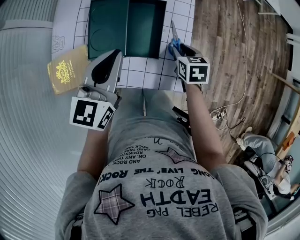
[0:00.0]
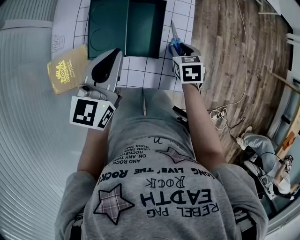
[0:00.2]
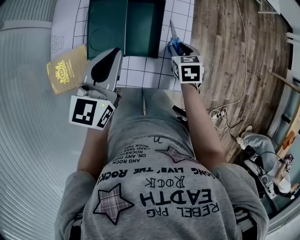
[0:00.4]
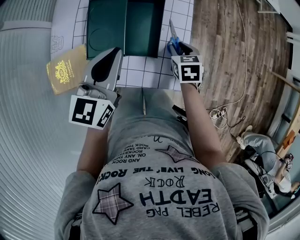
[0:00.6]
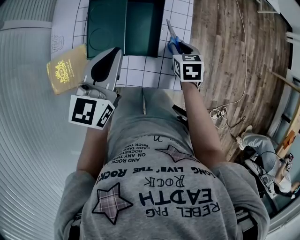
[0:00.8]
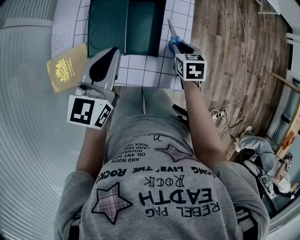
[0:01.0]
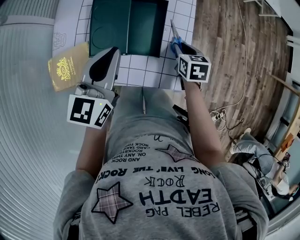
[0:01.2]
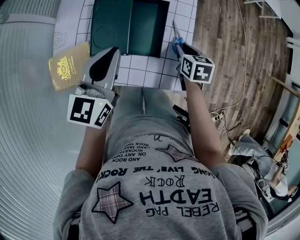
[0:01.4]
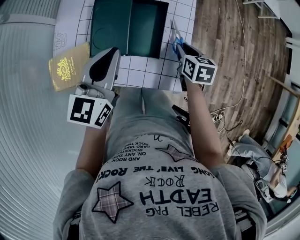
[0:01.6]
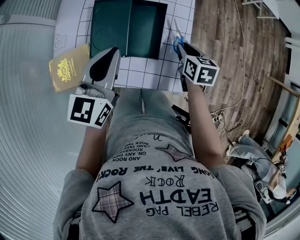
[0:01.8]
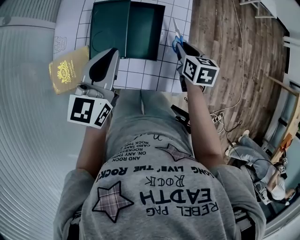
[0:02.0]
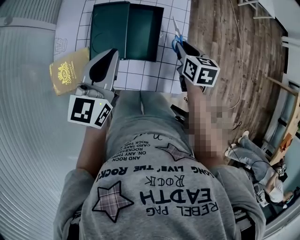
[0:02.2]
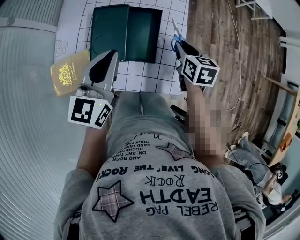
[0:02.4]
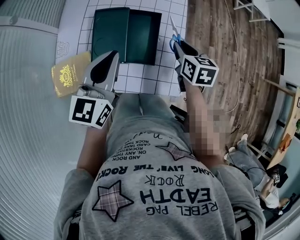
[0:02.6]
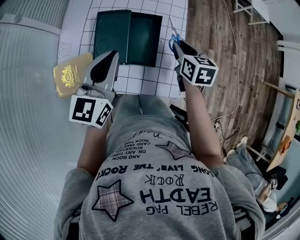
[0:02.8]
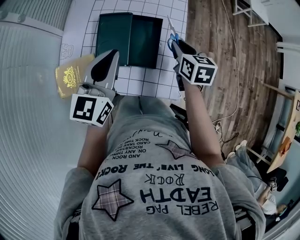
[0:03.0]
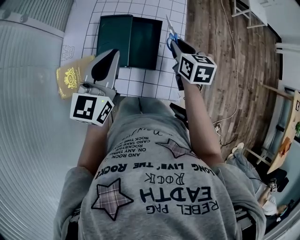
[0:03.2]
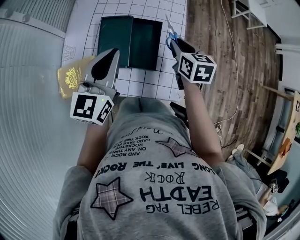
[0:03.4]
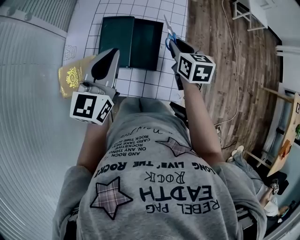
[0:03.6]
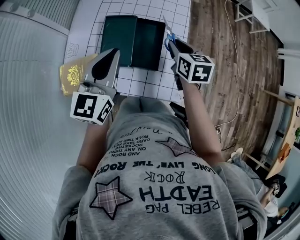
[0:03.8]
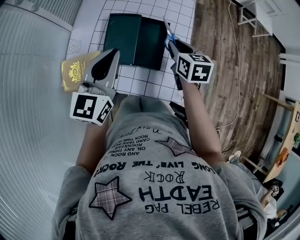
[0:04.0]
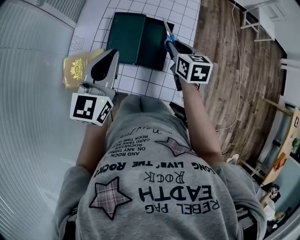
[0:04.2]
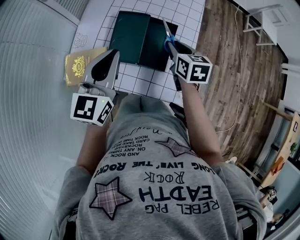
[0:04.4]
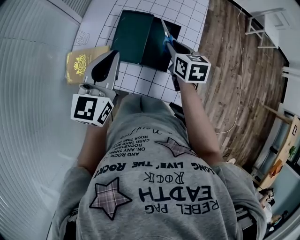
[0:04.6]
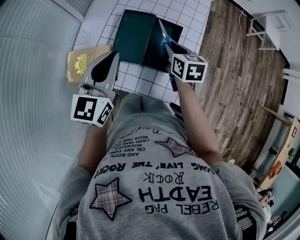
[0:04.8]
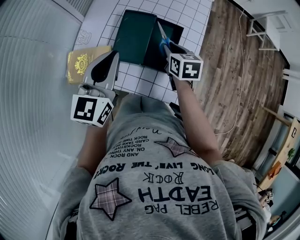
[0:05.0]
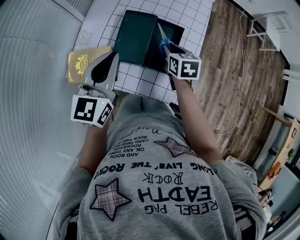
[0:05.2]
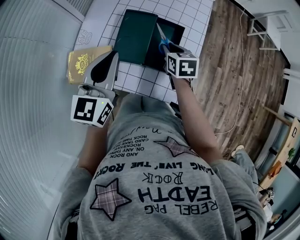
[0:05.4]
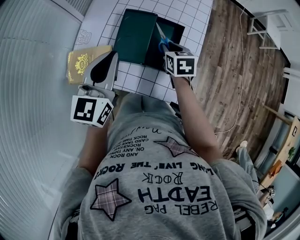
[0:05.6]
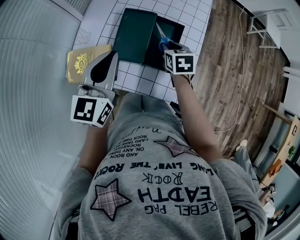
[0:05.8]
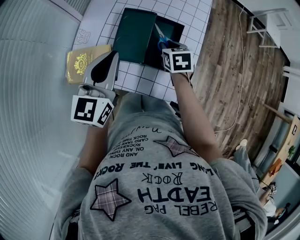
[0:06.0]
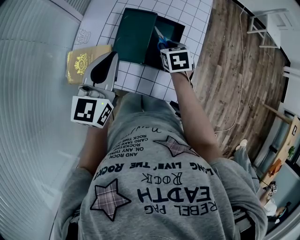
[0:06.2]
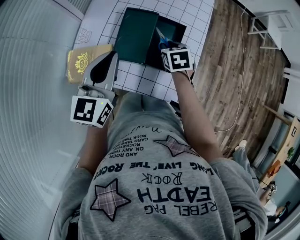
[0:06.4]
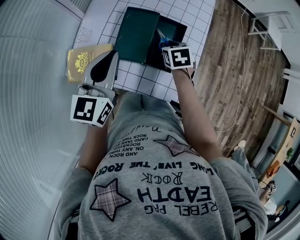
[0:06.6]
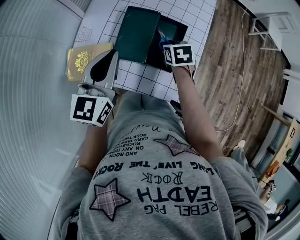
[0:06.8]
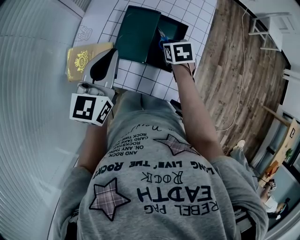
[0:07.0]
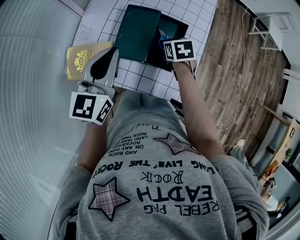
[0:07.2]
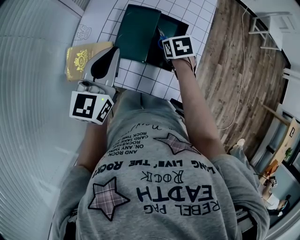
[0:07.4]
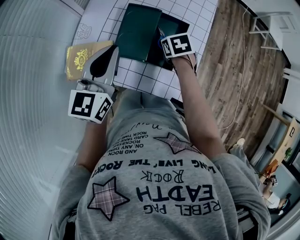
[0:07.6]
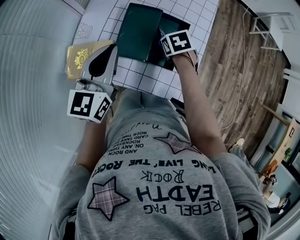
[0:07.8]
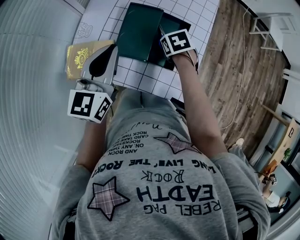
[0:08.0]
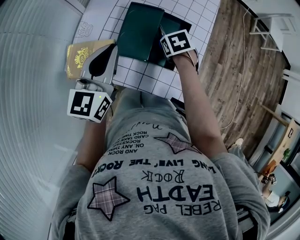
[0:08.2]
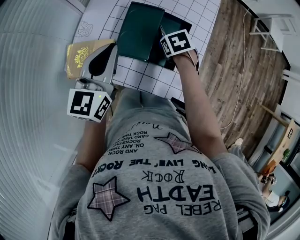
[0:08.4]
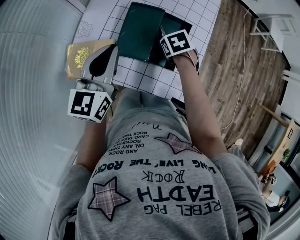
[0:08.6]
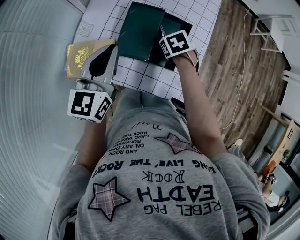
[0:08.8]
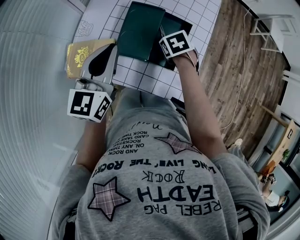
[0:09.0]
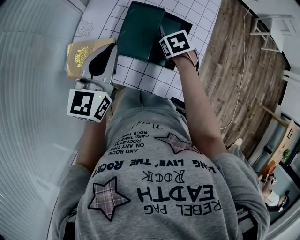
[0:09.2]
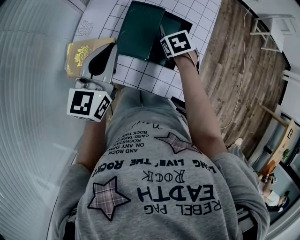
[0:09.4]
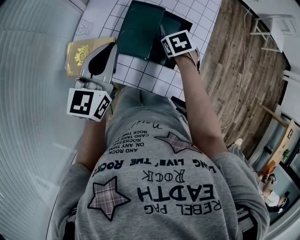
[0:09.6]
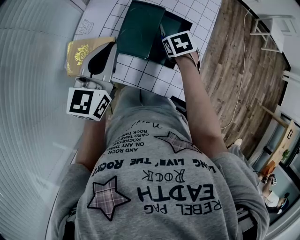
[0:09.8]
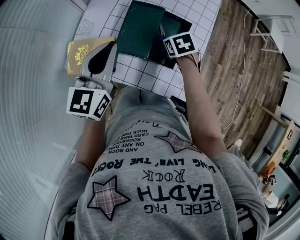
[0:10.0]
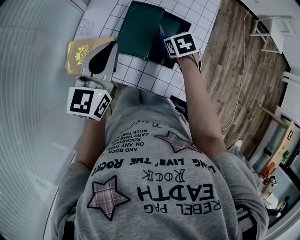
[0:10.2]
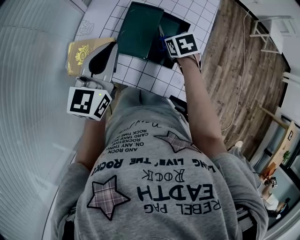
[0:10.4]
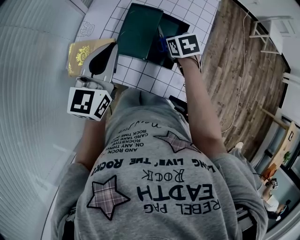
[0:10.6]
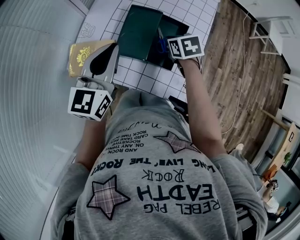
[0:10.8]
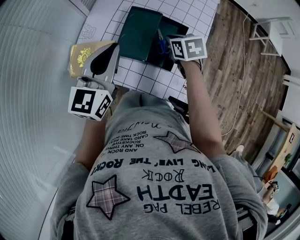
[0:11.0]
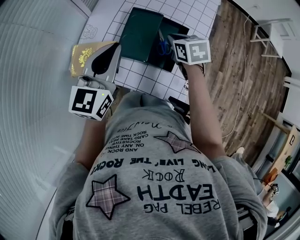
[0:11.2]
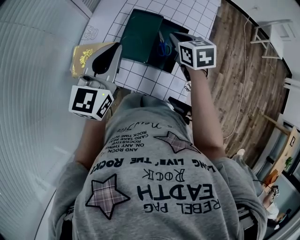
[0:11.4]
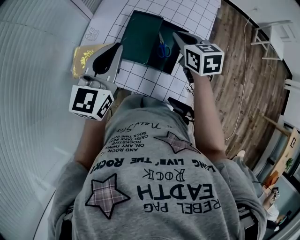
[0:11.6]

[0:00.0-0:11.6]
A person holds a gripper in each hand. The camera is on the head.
0:00.0 to 0:01.4: The grippers move only a little.
0:01.4 to 0:02.8: The right gripper heads upward, covering about 10 cm.
0:02.8 to 0:04.4: The right gripper goes roughly 10 cm to the left. Meanwhile the left gripper ends up some 5 cm from where it was.
0:04.4 to 0:05.8: The right gripper travels downward by some 5 cm.
0:05.8 to 0:07.2: The grippers make only small movements.
0:07.2 to 0:10.2: There are only small adjustments of the grippers.
0:10.2 to 0:11.6: The right gripper moves upward, some 15 cm, and tilts its fingers about 30 degrees upward.

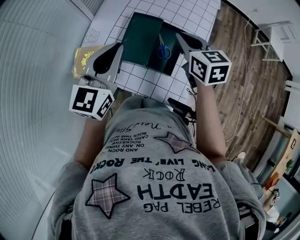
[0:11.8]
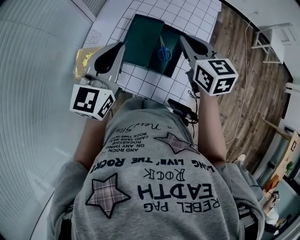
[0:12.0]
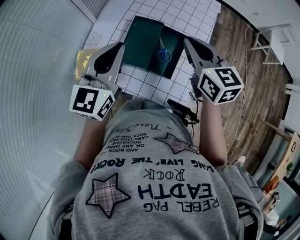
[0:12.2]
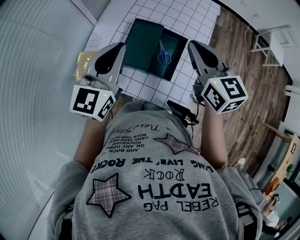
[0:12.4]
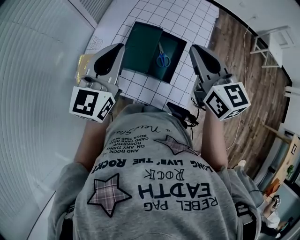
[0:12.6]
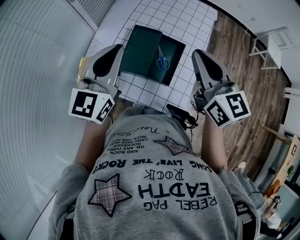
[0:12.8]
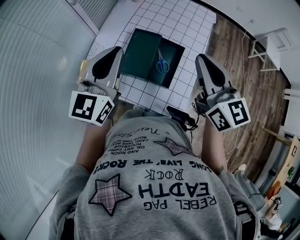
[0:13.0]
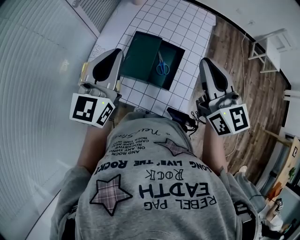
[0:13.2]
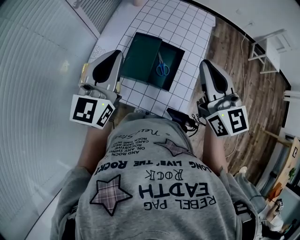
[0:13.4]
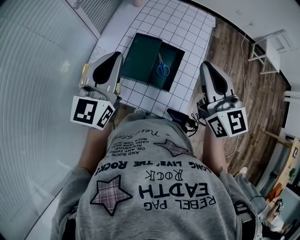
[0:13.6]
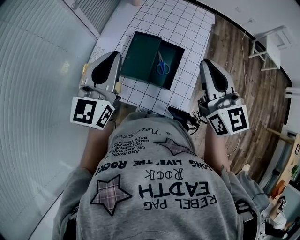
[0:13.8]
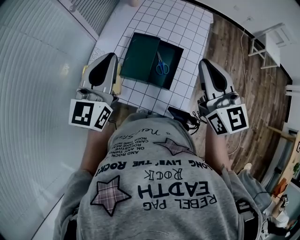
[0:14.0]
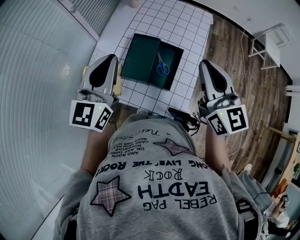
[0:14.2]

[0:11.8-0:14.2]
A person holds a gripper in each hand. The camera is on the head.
0:11.8 to 0:13.0: The right gripper travels upward and backward by about 15 cm, and rotates some 30 degrees. Meanwhile the left gripper travels upward by about 5 cm.
0:13.0 to 0:14.2: The grippers move only a little.

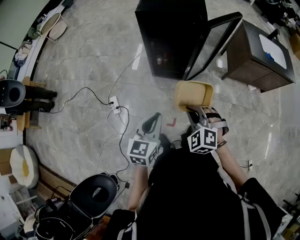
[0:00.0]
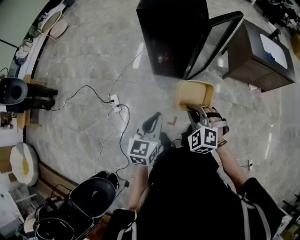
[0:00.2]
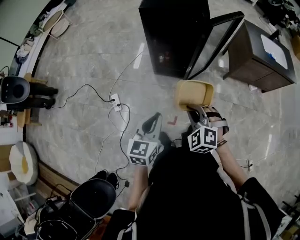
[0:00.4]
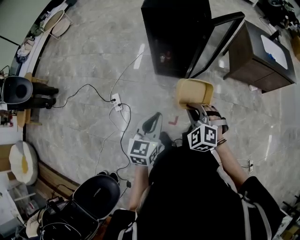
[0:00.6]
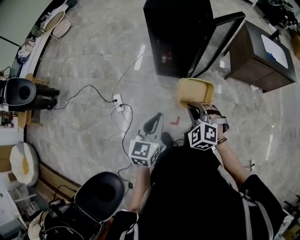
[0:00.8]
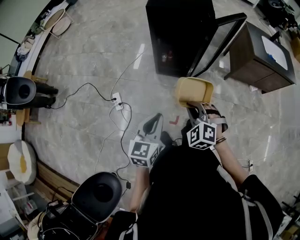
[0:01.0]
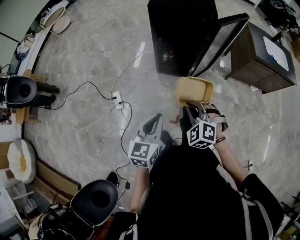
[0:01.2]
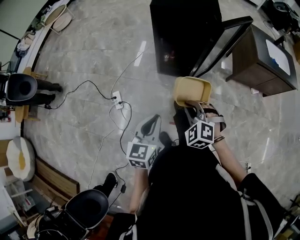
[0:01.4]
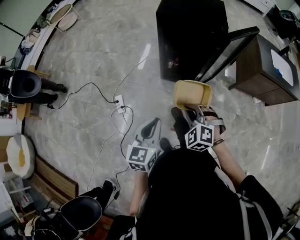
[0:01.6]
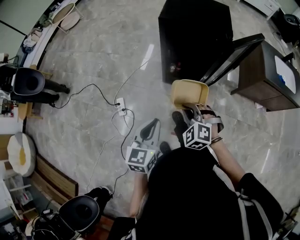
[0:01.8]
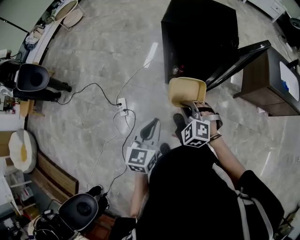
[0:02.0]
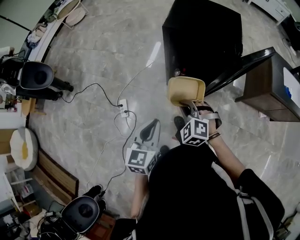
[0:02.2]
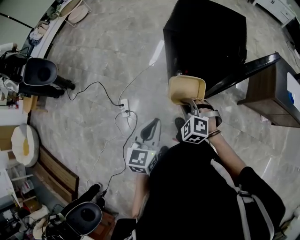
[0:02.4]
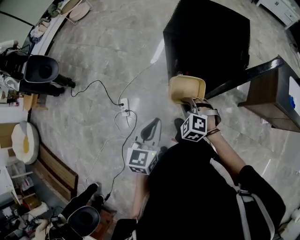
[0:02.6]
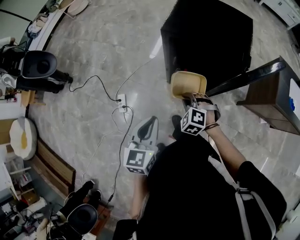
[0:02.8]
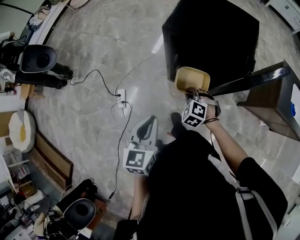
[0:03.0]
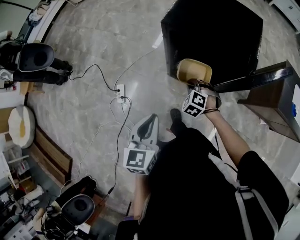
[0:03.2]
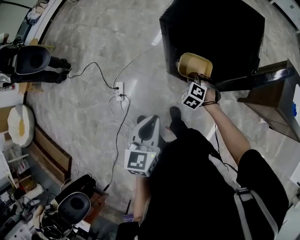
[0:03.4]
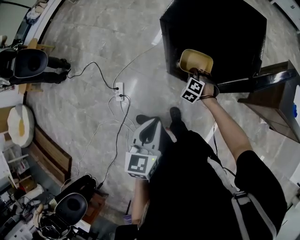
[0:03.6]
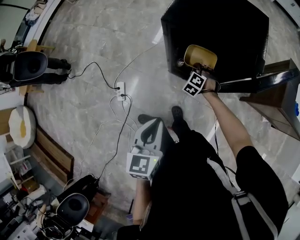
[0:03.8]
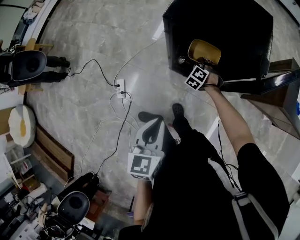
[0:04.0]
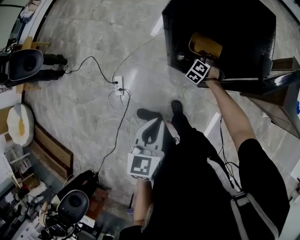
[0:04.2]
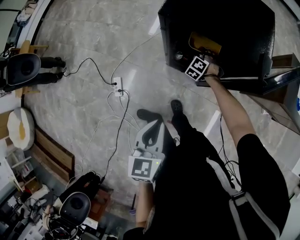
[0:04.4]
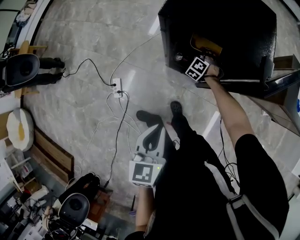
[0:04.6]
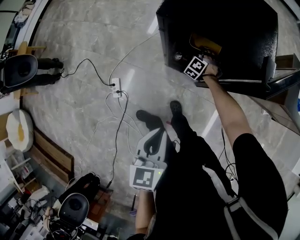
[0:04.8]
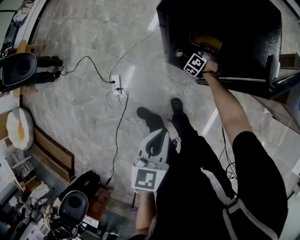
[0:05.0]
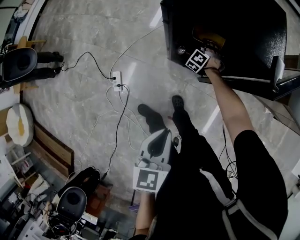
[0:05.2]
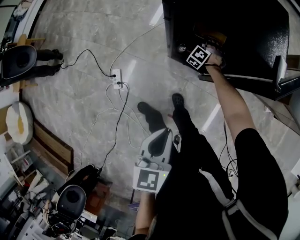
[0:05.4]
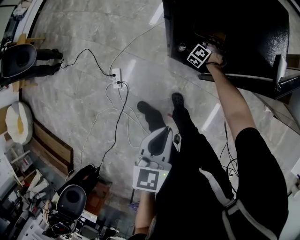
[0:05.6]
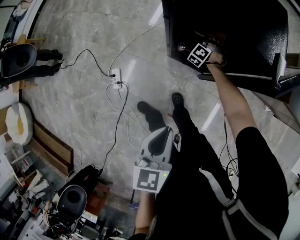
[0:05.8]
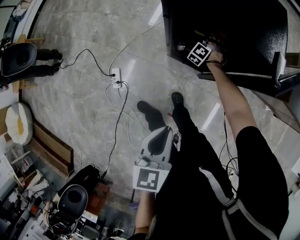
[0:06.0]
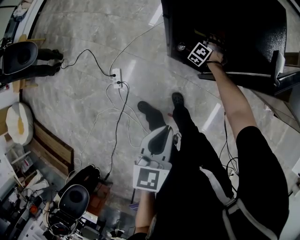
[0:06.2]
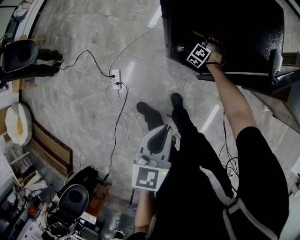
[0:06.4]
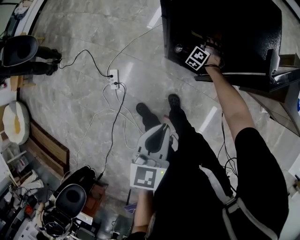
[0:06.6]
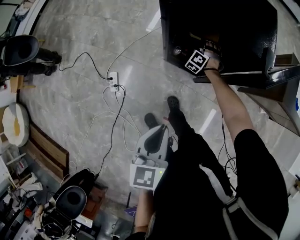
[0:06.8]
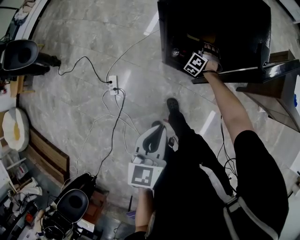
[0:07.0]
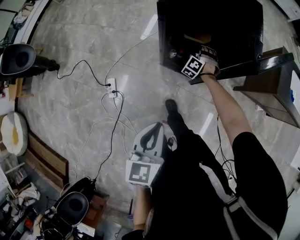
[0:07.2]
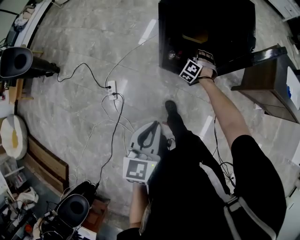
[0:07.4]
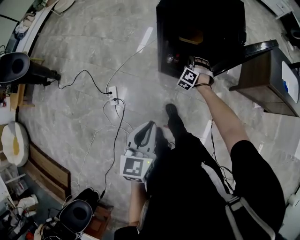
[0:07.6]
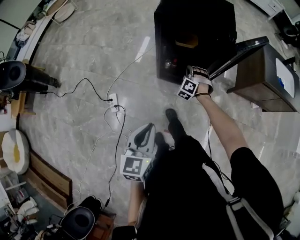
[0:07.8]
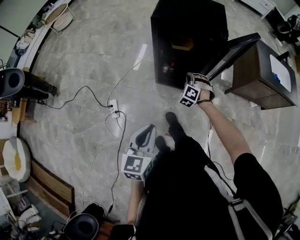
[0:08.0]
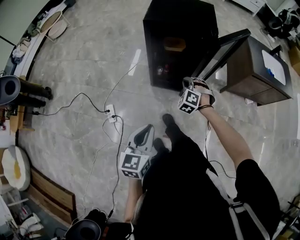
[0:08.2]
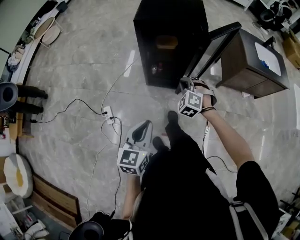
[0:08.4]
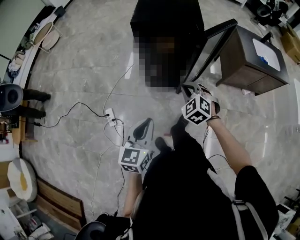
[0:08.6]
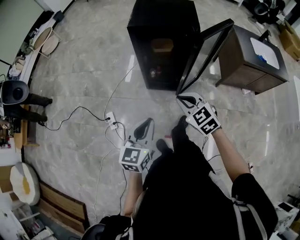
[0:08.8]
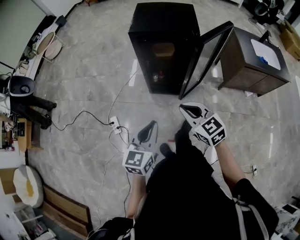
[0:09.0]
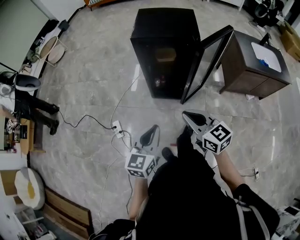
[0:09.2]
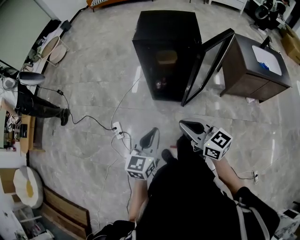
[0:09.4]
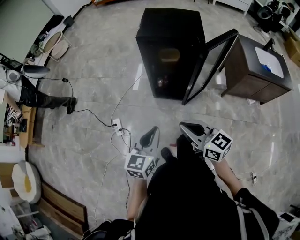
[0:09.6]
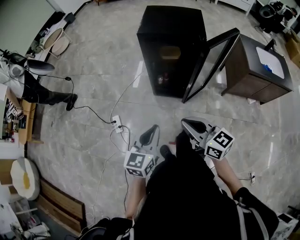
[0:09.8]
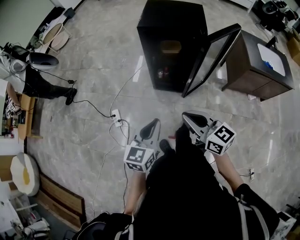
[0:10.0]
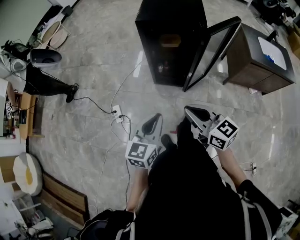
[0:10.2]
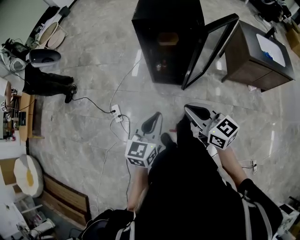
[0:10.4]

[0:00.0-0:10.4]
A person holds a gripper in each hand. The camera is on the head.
0:00.0 to 0:01.4: Both grippers travel together to the left, roughly 5 cm.
0:01.4 to 0:03.0: The two grippers go approximately 30 cm forward.
0:03.0 to 0:04.4: The right gripper travels forward and downward by roughly 25 cm, and rotates roughly 20 degrees.
0:04.4 to 0:06.0: The right gripper shifts by roughly 5 cm, and opens.
0:06.0 to 0:07.4: The left gripper shifts some 10 cm backward, while the right gripper travels backward and upward by about 15 cm.
0:07.4 to 0:09.0: The left gripper goes roughly 10 cm backward, and changes its angle by approximately 20 degrees. The right gripper heads backward and upward, covering roughly 50 cm, and changes its angle by roughly 70 degrees.
0:09.0 to 0:10.4: The right gripper heads backward, covering about 5 cm, and rotates about 20 degrees.
